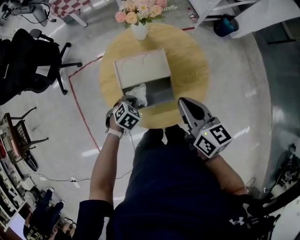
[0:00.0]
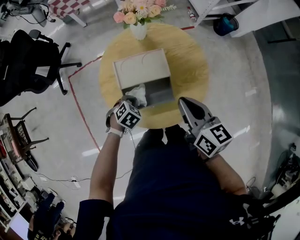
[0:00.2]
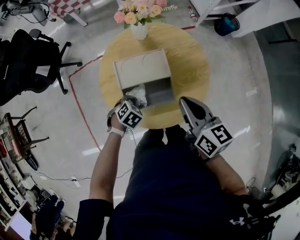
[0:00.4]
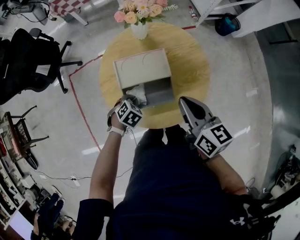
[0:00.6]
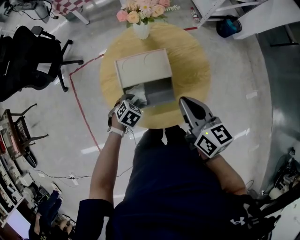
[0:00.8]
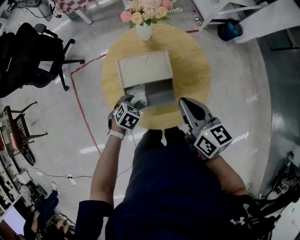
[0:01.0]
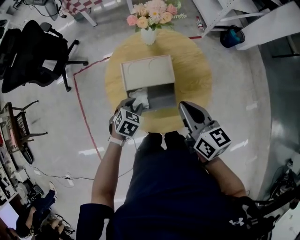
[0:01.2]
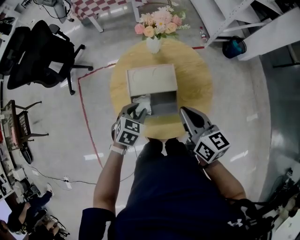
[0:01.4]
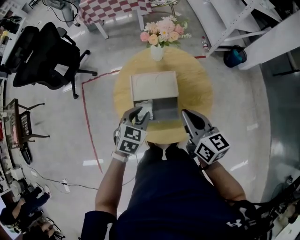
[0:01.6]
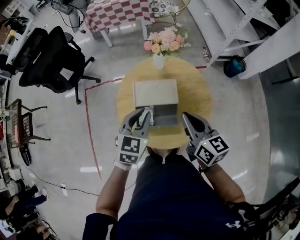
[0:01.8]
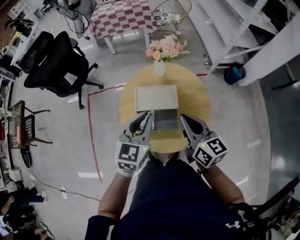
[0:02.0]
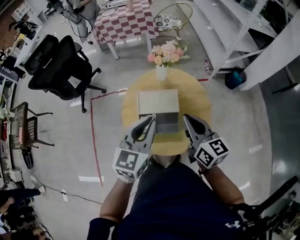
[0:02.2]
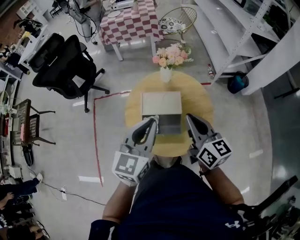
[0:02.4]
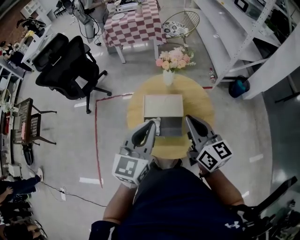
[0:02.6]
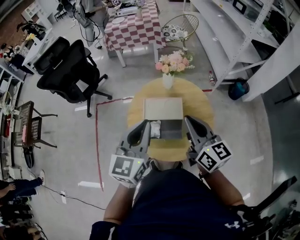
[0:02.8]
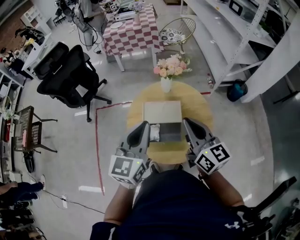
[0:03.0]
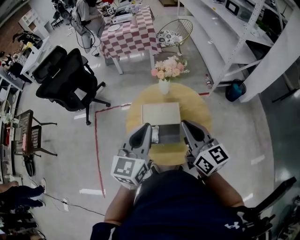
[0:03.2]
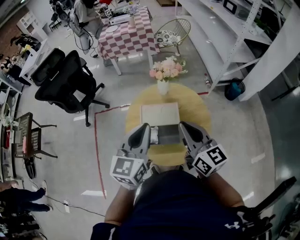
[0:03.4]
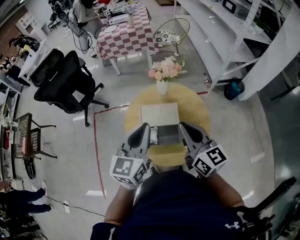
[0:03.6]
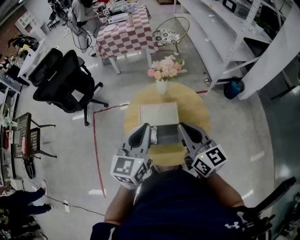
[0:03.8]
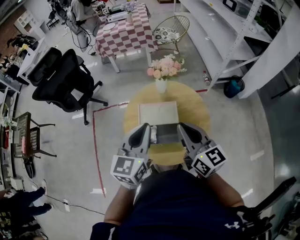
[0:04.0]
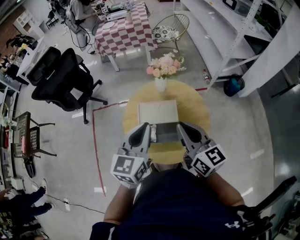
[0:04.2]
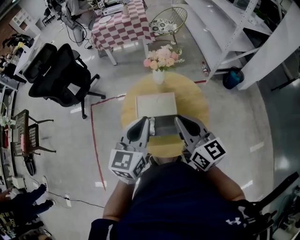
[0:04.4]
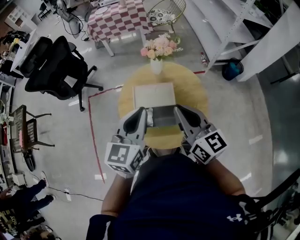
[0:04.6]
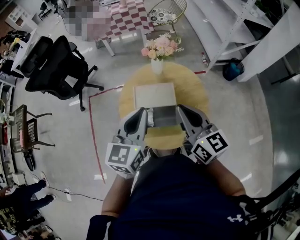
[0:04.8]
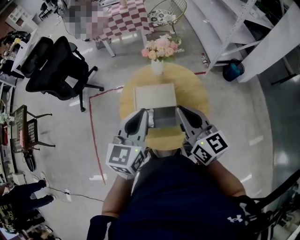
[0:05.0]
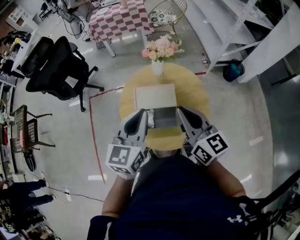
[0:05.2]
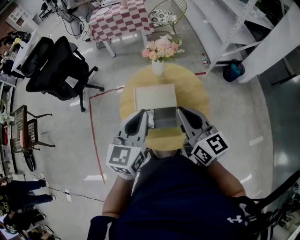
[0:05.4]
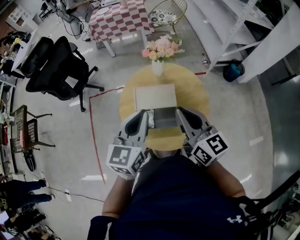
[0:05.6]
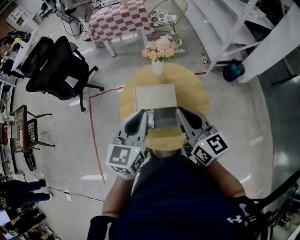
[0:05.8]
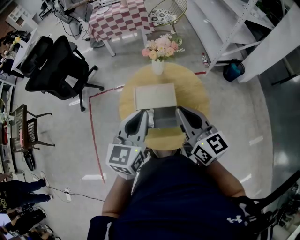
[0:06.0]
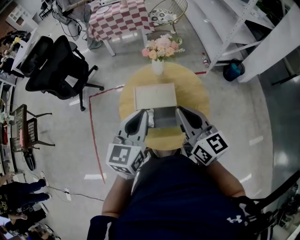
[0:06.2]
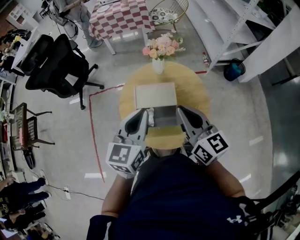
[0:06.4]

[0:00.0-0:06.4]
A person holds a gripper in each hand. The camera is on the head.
0:00.0 to 0:01.6: The left gripper goes roughly 15 cm upward, rotates approximately 30 degrees, and opens.
0:01.6 to 0:03.2: The left gripper travels upward by some 25 cm, tips its fingers upward by approximately 40 degrees, and closes; the right gripper shifts approximately 10 cm upward.
0:03.2 to 0:04.8: The grippers move only a little.
0:04.8 to 0:06.4: Neither gripper changes place.

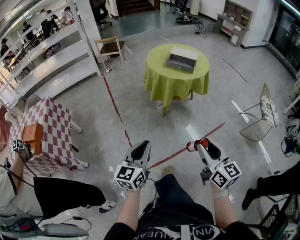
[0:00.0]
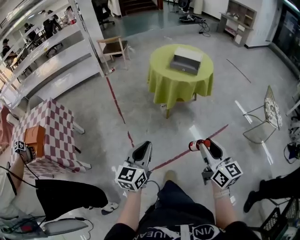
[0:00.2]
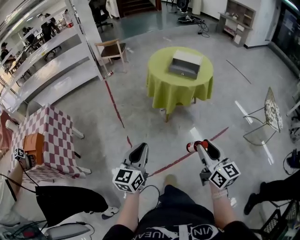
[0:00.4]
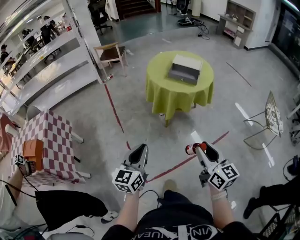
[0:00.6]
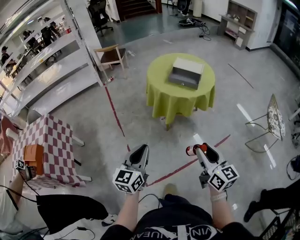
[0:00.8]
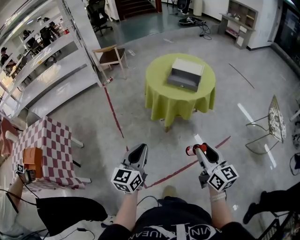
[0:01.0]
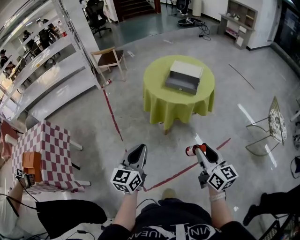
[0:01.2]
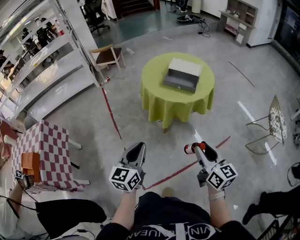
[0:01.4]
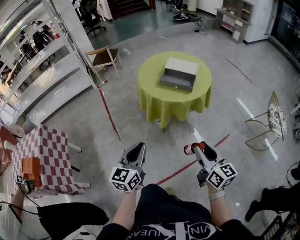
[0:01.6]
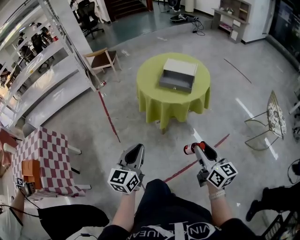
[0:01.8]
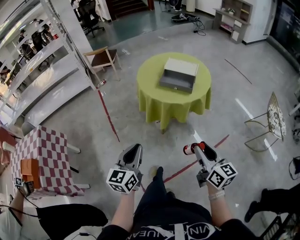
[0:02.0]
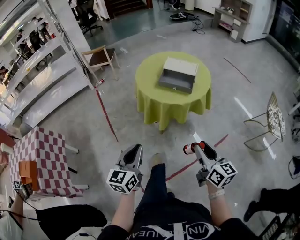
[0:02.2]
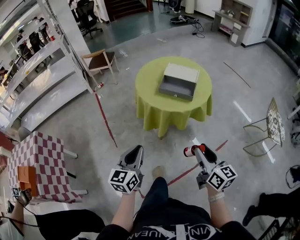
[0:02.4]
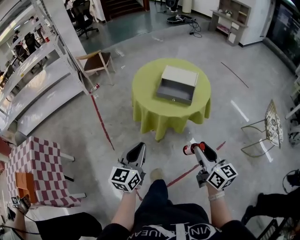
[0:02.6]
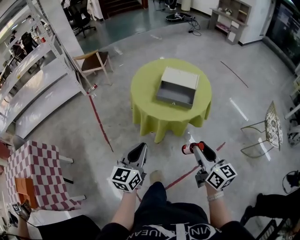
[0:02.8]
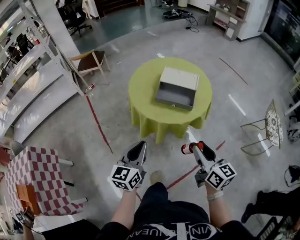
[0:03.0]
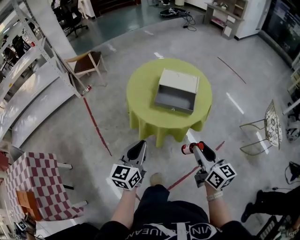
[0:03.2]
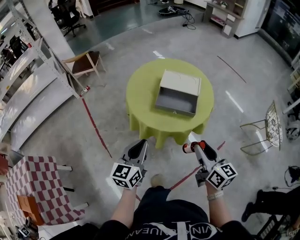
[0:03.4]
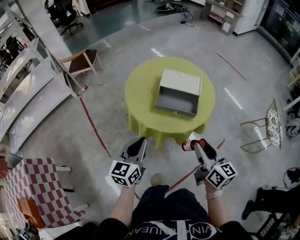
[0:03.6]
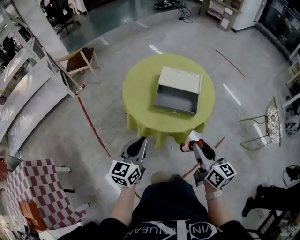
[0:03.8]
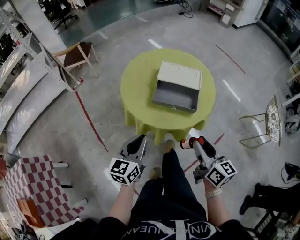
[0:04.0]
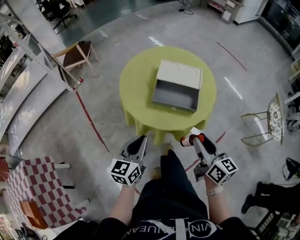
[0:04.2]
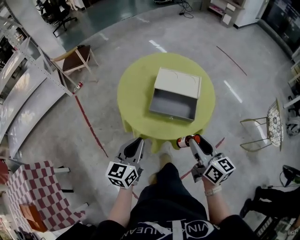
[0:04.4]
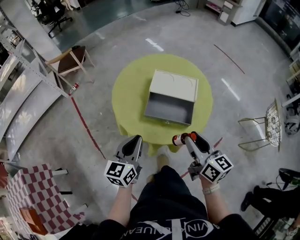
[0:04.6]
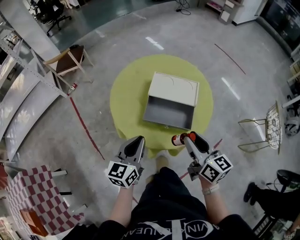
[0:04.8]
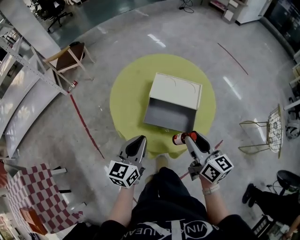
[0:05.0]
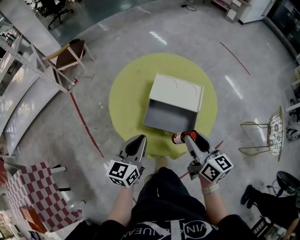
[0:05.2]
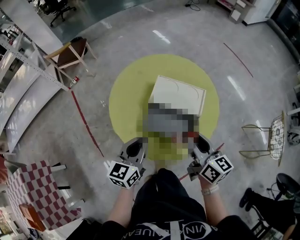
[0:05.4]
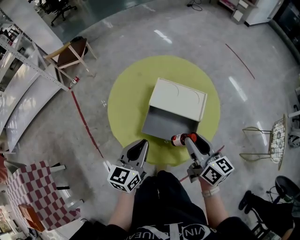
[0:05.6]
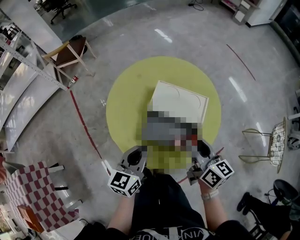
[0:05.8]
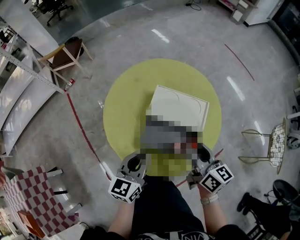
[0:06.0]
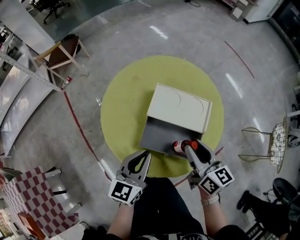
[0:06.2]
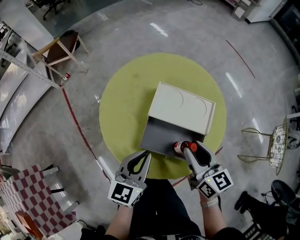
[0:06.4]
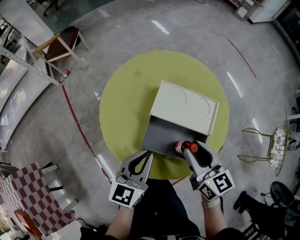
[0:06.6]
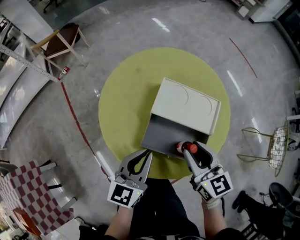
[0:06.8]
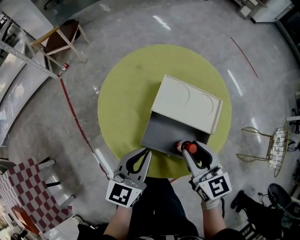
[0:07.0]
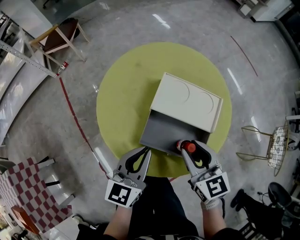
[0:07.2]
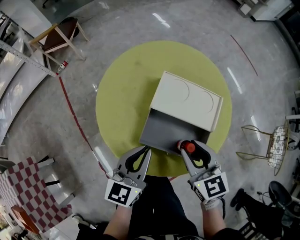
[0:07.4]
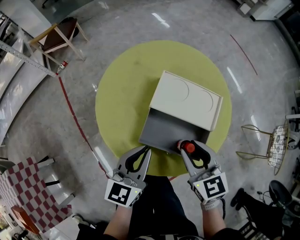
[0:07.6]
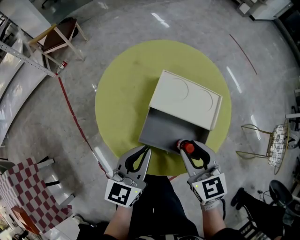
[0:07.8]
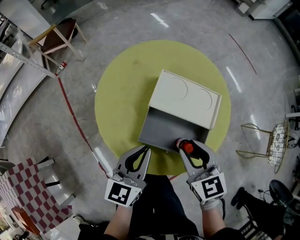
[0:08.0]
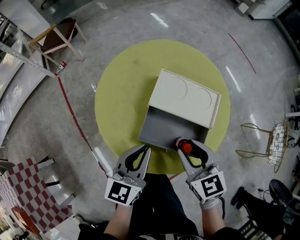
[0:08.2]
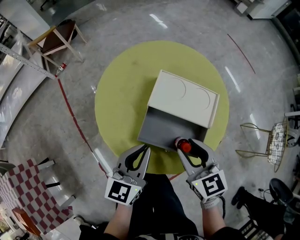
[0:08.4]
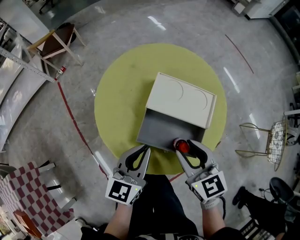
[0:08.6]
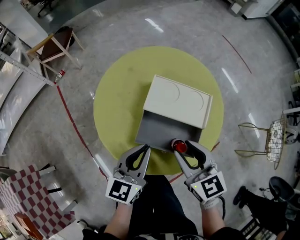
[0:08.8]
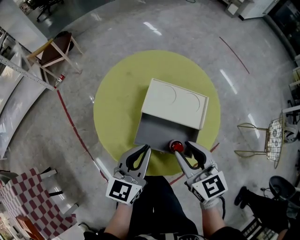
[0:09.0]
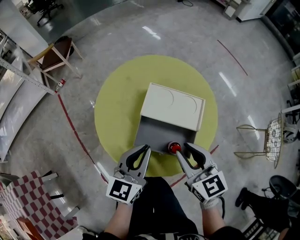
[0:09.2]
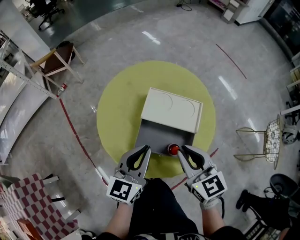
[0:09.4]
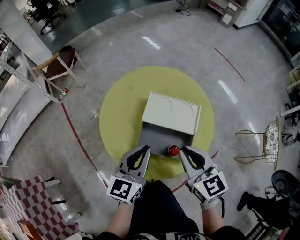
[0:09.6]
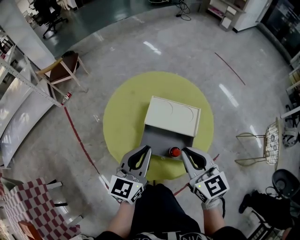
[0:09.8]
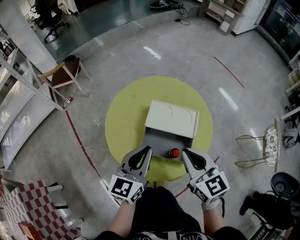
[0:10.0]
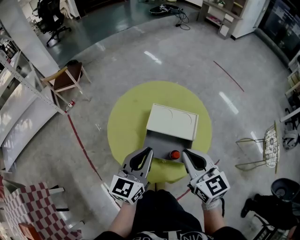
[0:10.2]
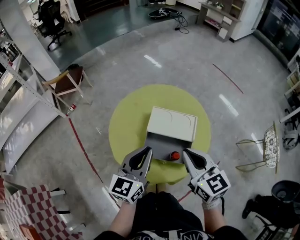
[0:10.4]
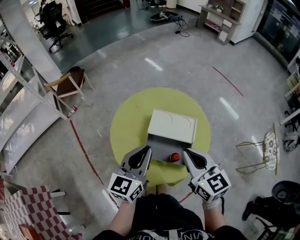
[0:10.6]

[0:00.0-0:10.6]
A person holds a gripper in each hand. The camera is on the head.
0:00.0 to 0:01.6: Both grippers travel together forward, some 25 cm.
0:01.6 to 0:03.0: The grippers both shift forward by approximately 20 cm.
0:03.0 to 0:04.6: The two grippers go about 20 cm forward.
0:04.6 to 0:06.0: The right gripper heads forward, covering roughly 15 cm; the left gripper moves forward and to the right, roughly 10 cm.
0:06.0 to 0:07.6: The right gripper moves some 5 cm, and swivels about 40 degrees.
0:07.6 to 0:09.0: The grippers make only small movements.
0:09.0 to 0:10.6: The two grippers go some 10 cm upward. The right gripper closes up.

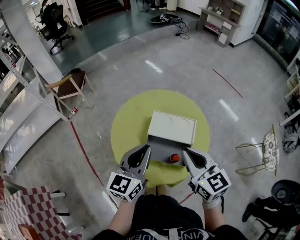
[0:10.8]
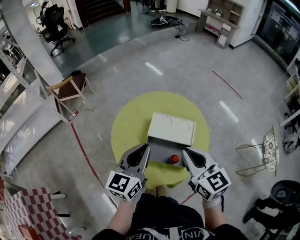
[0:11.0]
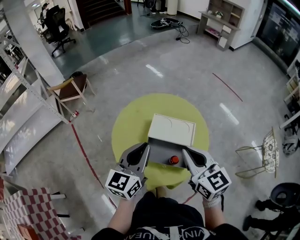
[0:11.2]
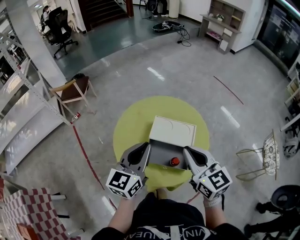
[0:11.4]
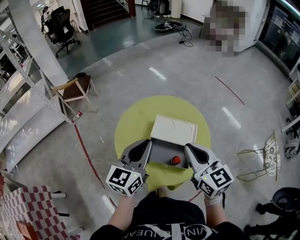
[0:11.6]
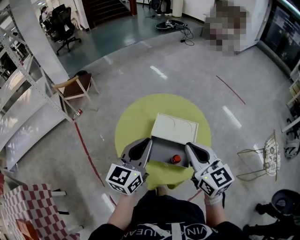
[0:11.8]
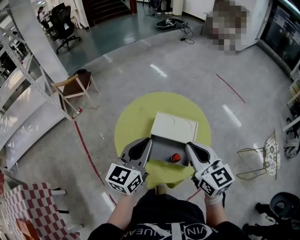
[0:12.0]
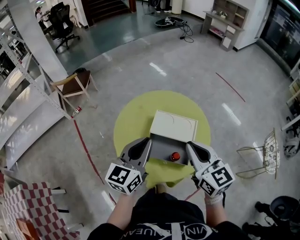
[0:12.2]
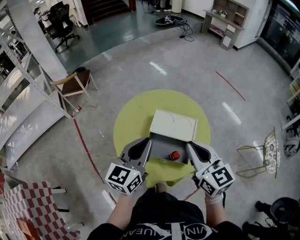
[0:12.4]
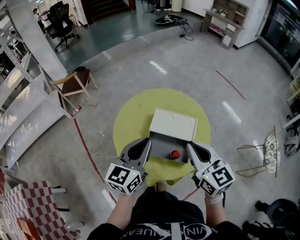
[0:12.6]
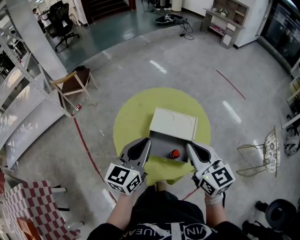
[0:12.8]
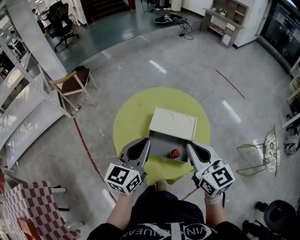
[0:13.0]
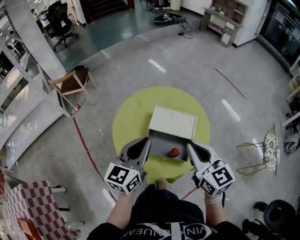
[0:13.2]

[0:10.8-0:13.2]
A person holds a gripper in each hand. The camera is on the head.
0:10.8 to 0:13.2: The grippers stay close to where they were, moving slightly.

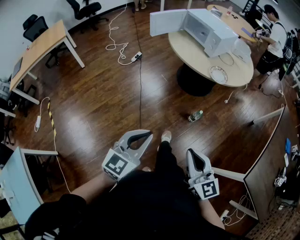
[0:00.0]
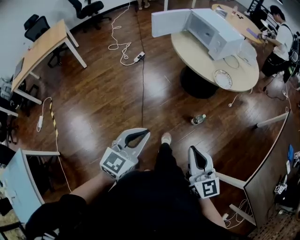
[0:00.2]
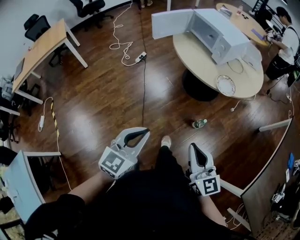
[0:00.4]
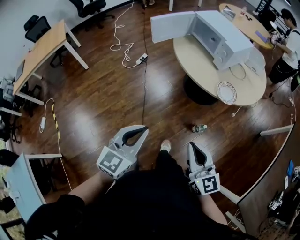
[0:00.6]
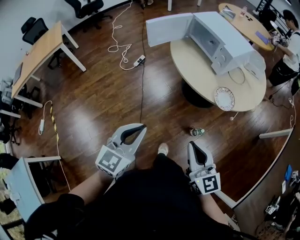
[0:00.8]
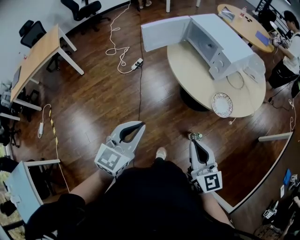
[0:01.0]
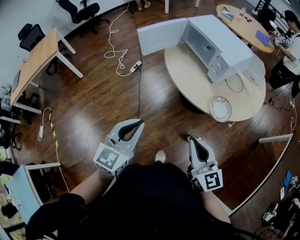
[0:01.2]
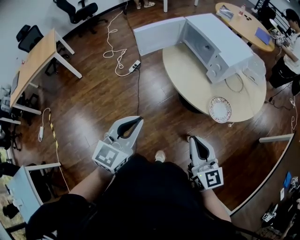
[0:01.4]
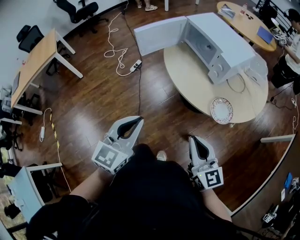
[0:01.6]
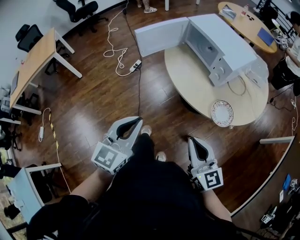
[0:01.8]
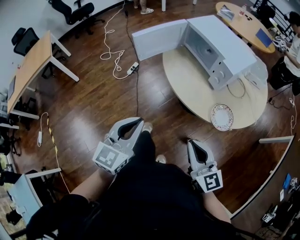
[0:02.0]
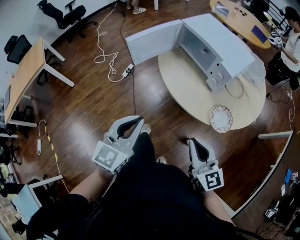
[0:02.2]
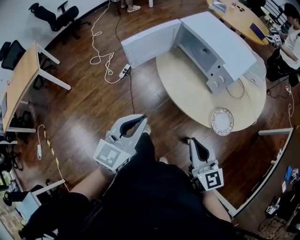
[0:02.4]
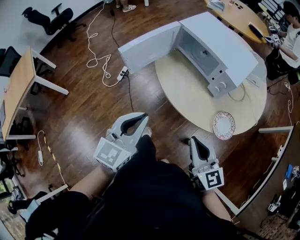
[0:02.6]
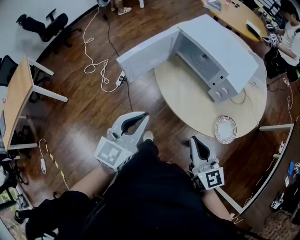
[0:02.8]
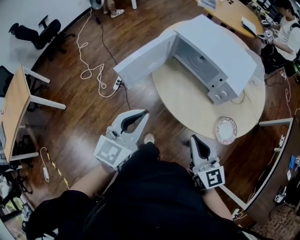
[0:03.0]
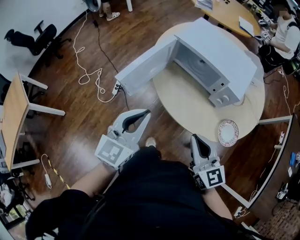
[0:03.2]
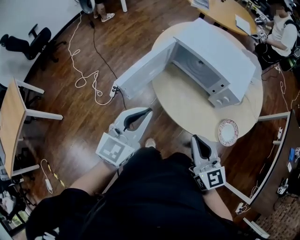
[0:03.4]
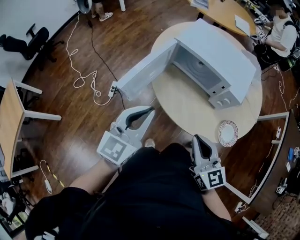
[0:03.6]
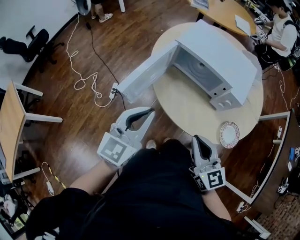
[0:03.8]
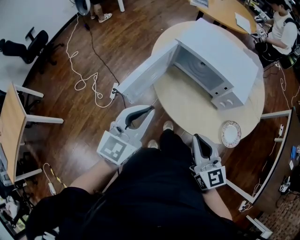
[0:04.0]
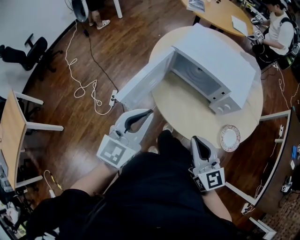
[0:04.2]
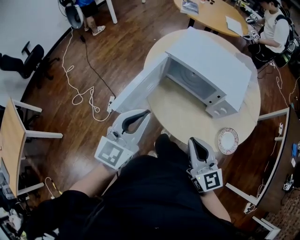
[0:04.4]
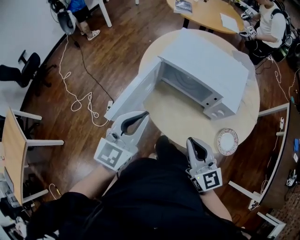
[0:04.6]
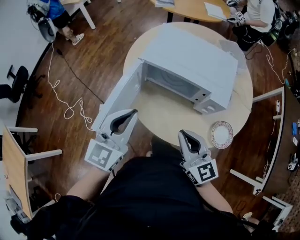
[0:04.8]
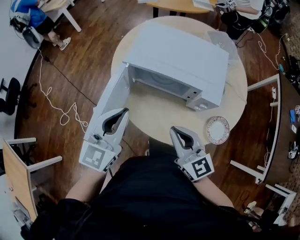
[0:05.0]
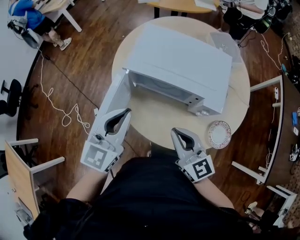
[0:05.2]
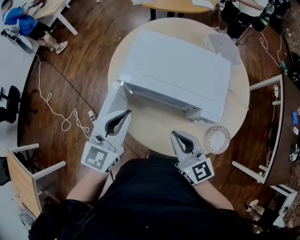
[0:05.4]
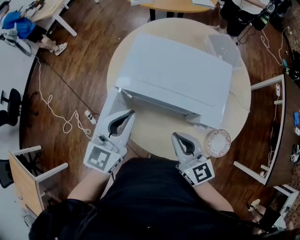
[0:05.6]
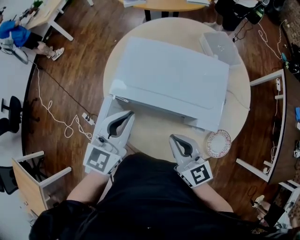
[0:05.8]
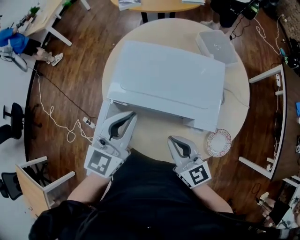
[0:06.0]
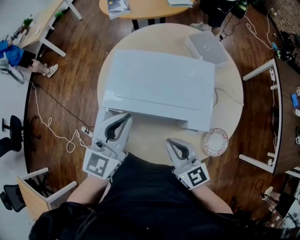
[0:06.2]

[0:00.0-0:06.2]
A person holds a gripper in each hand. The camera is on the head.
0:00.0 to 0:01.6: Both grippers travel together forward, approximately 35 cm.
0:01.6 to 0:03.2: The right gripper heads forward and to the left, covering some 25 cm. The left gripper shifts about 30 cm forward, and swivels roughly 20 degrees.
0:03.2 to 0:04.6: Both grippers travel together forward, approximately 10 cm.
0:04.6 to 0:06.2: The left gripper shifts some 20 cm forward and to the right; the right gripper moves forward, roughly 15 cm.
